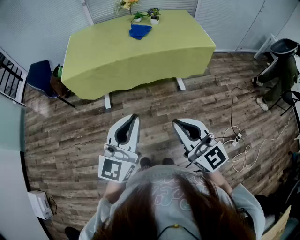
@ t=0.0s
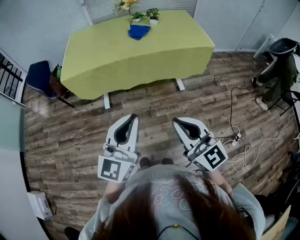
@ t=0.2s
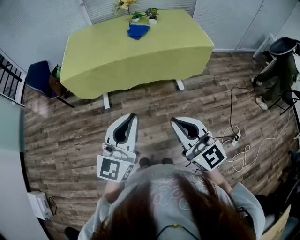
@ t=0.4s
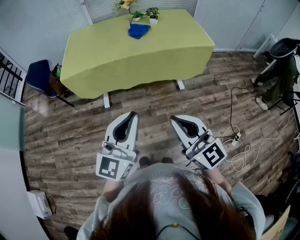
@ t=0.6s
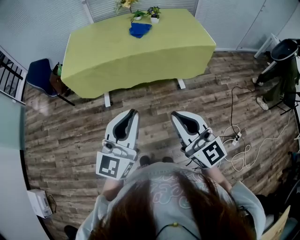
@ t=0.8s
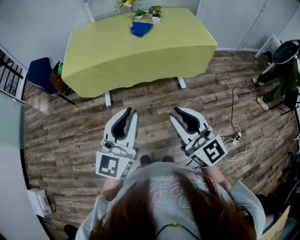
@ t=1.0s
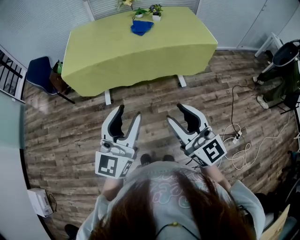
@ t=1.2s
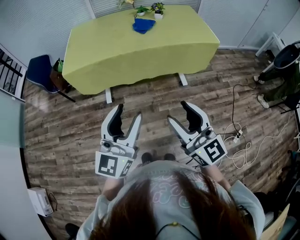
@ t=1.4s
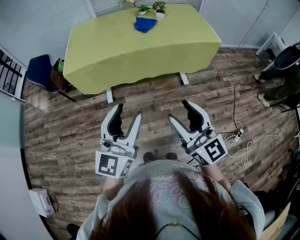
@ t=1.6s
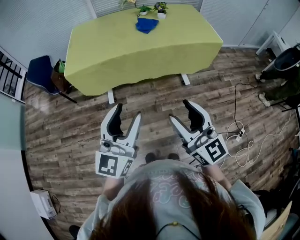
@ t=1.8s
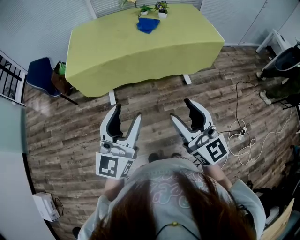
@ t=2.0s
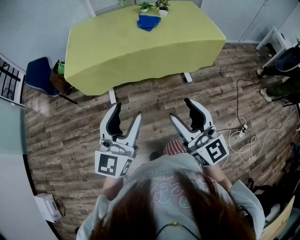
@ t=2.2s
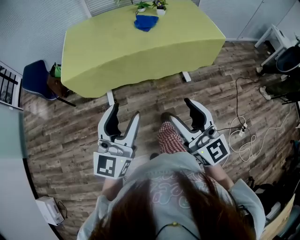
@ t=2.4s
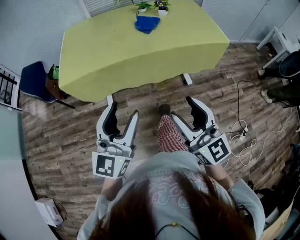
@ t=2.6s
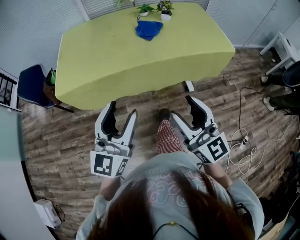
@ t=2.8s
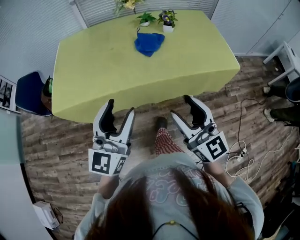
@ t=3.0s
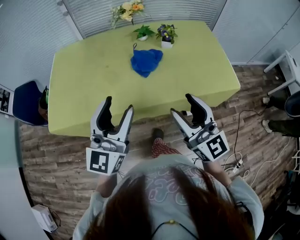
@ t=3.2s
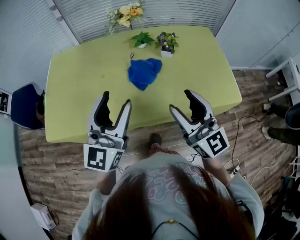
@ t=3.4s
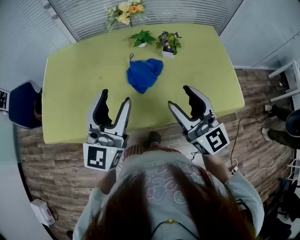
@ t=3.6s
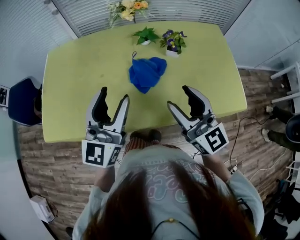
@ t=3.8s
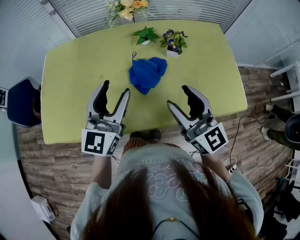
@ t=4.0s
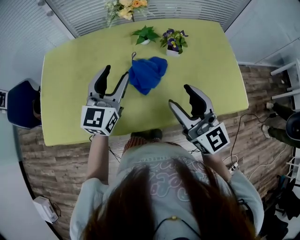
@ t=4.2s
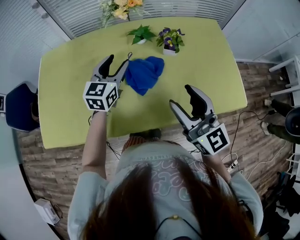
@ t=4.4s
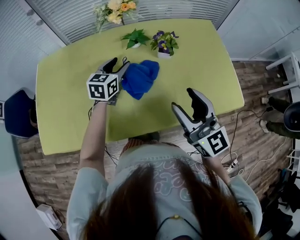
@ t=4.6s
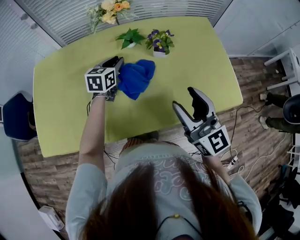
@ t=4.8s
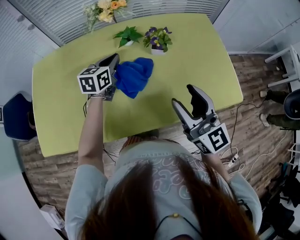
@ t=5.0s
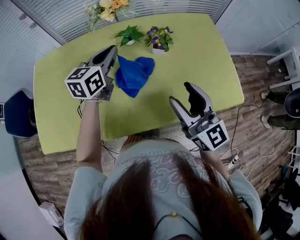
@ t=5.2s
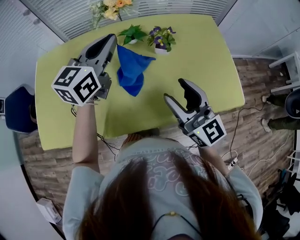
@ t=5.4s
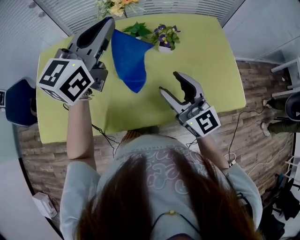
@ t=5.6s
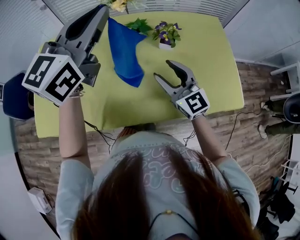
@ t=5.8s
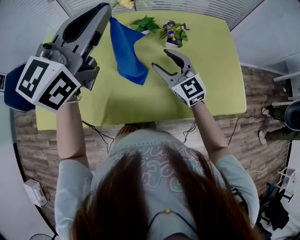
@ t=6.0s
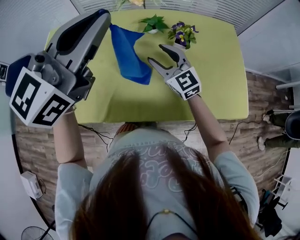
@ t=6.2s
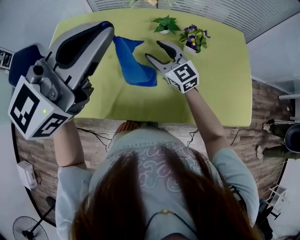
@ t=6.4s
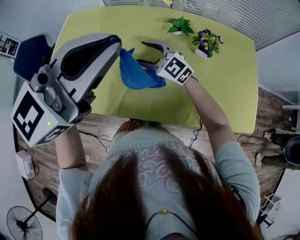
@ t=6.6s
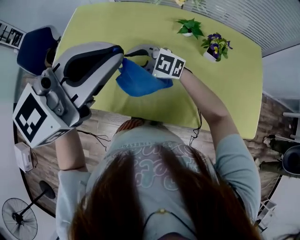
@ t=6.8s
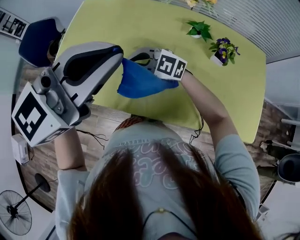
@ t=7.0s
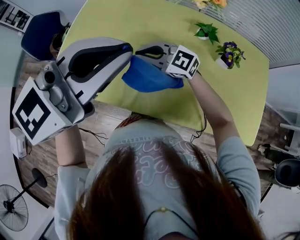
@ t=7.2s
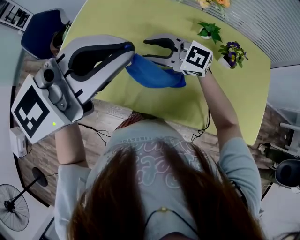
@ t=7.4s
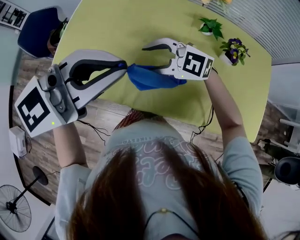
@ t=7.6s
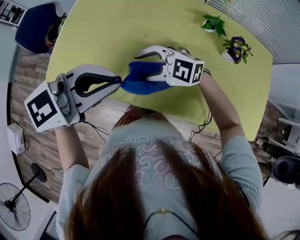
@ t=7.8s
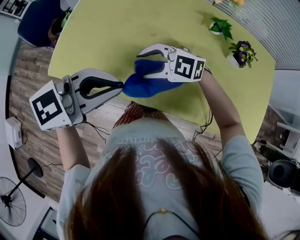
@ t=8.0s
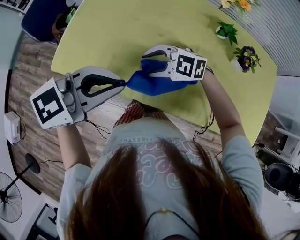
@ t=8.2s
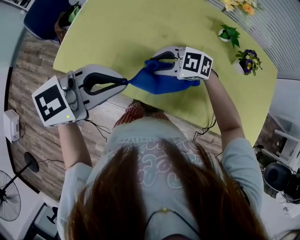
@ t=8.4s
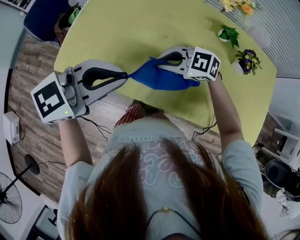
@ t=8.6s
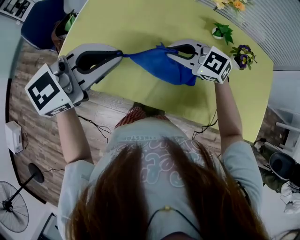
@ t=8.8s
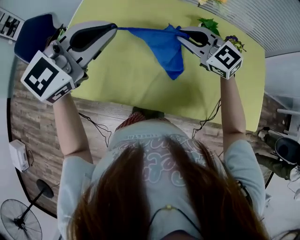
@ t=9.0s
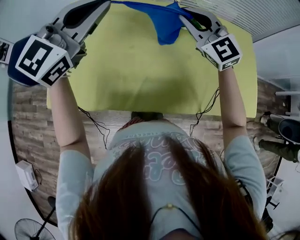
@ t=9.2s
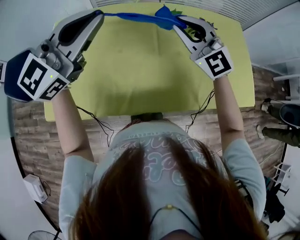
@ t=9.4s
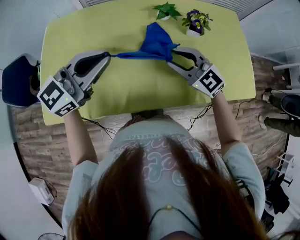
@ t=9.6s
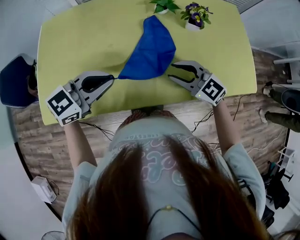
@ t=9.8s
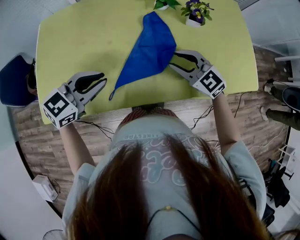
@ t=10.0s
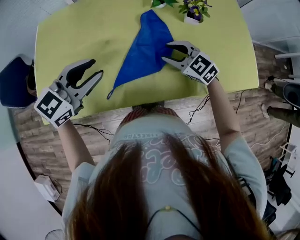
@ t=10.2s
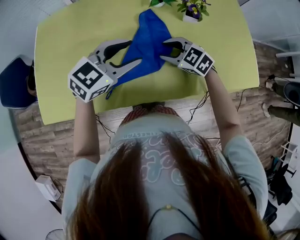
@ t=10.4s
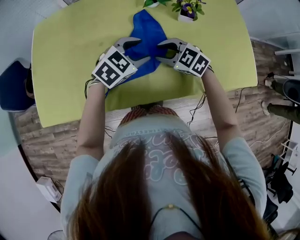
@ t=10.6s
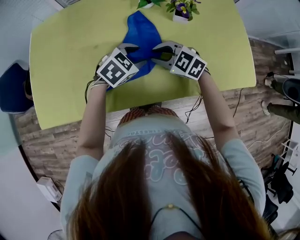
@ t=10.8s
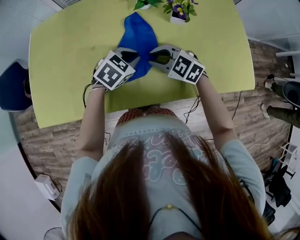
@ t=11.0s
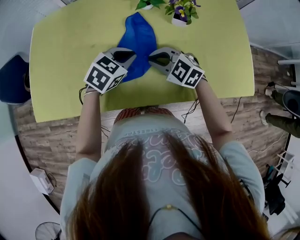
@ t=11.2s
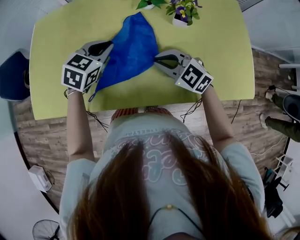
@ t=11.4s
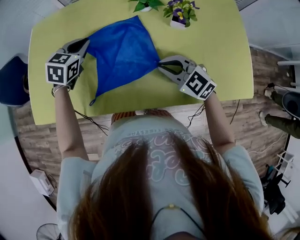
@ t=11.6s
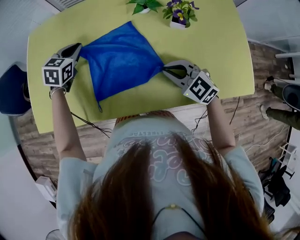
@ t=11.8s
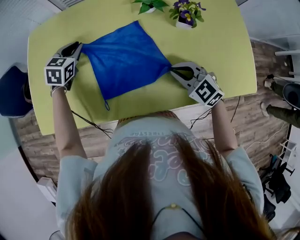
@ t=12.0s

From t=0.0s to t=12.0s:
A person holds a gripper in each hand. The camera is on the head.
From t=0.0s to t=1.6s: The left gripper is displaced to the left by some 5 cm, and opens up. The right gripper opens up.
From t=1.6s to t=3.0s: The grippers both shift forward by approximately 30 cm.
From t=3.0s to t=4.4s: The left gripper is displaced forward by some 40 cm, and rotates about 20 degrees. The right gripper moves forward, about 30 cm.
From t=4.4s to t=6.0s: The right gripper heads forward and downward, covering some 15 cm, and rotates about 20 degrees. Meanwhile the left gripper shifts some 25 cm upward, and closes.
From t=6.0s to t=7.6s: The left gripper shifts by some 20 cm, while the right gripper changes place by approximately 25 cm, changes its angle by approximately 70 degrees, and closes, then opens again.
From t=7.6s to t=9.0s: The right gripper ends up approximately 15 cm from where it was, turns by roughly 30 degrees, and closes up; the left gripper reaches approximately 10 cm downward, then returns.
From t=9.0s to t=10.4s: The left gripper goes up and down, about 25 cm each way, reversing 2 times, changes its angle by approximately 30 degrees, and opens. Meanwhile the right gripper shifts roughly 15 cm downward, changes its angle by approximately 30 degrees, and opens.
From t=10.4s to t=12.0s: The right gripper changes place by about 5 cm, and closes; the left gripper ends up roughly 25 cm from where it was, turns by about 40 degrees, and closes up.

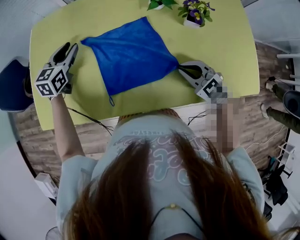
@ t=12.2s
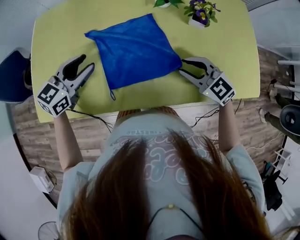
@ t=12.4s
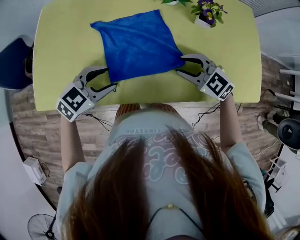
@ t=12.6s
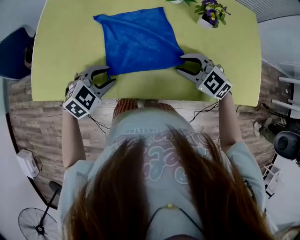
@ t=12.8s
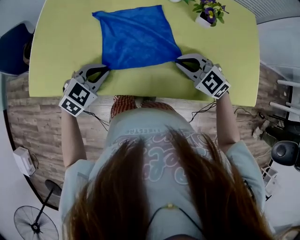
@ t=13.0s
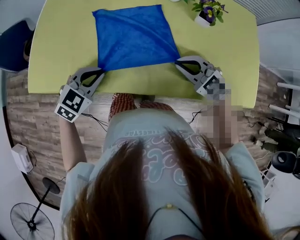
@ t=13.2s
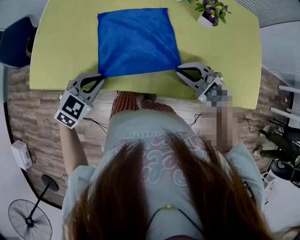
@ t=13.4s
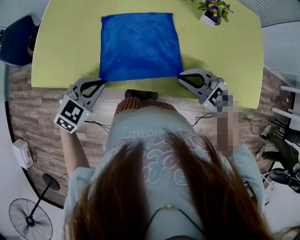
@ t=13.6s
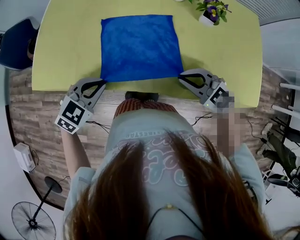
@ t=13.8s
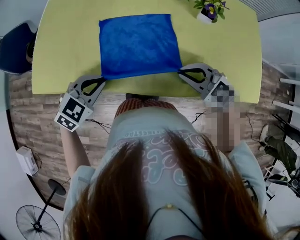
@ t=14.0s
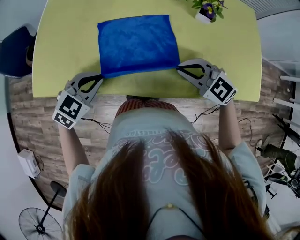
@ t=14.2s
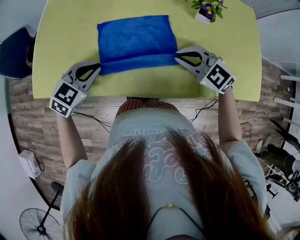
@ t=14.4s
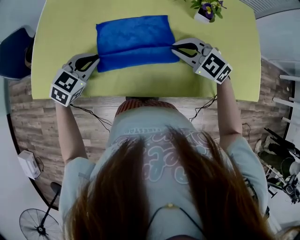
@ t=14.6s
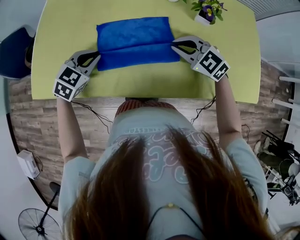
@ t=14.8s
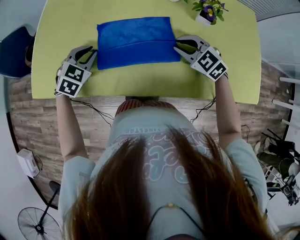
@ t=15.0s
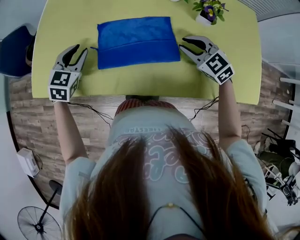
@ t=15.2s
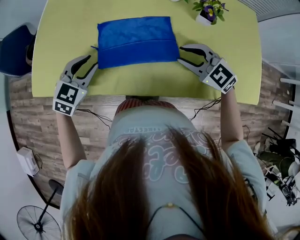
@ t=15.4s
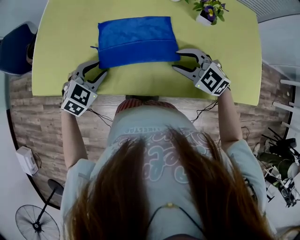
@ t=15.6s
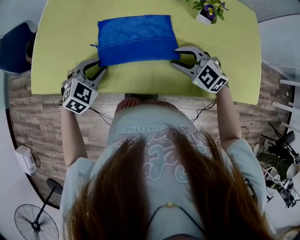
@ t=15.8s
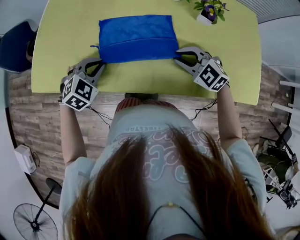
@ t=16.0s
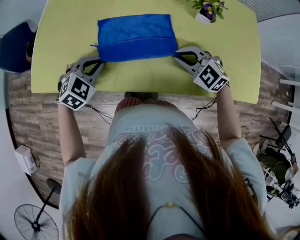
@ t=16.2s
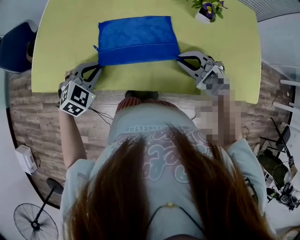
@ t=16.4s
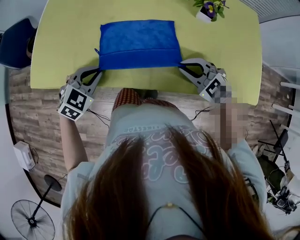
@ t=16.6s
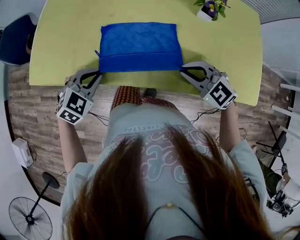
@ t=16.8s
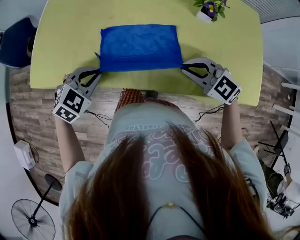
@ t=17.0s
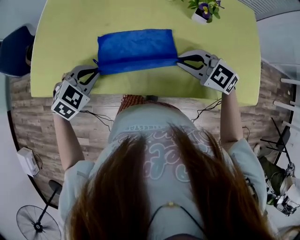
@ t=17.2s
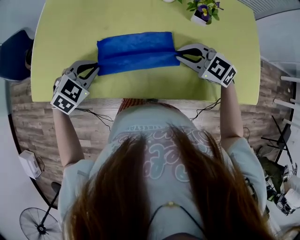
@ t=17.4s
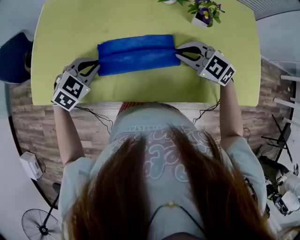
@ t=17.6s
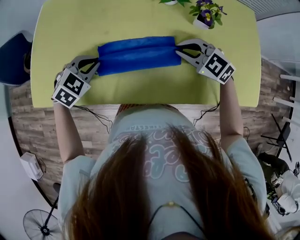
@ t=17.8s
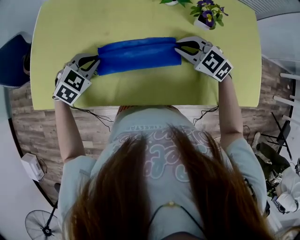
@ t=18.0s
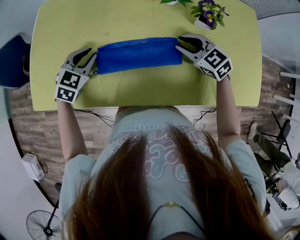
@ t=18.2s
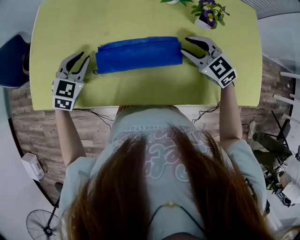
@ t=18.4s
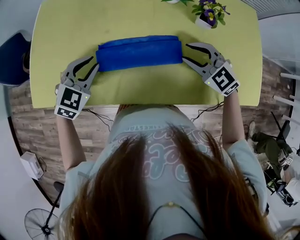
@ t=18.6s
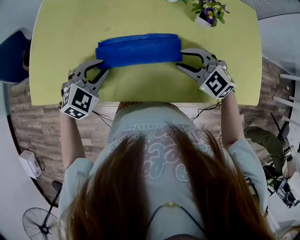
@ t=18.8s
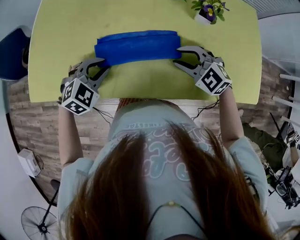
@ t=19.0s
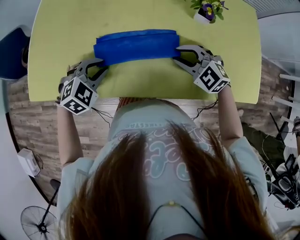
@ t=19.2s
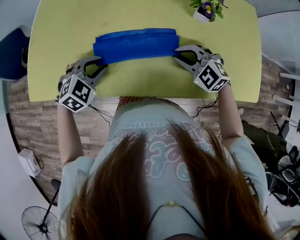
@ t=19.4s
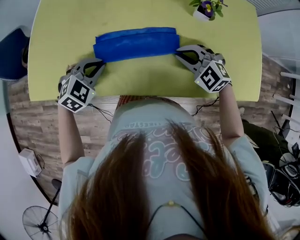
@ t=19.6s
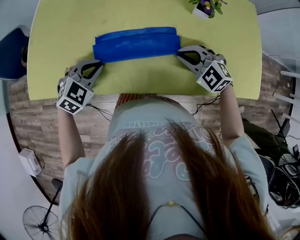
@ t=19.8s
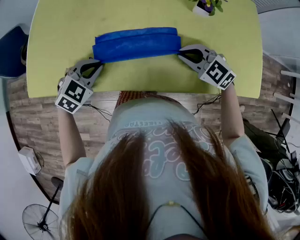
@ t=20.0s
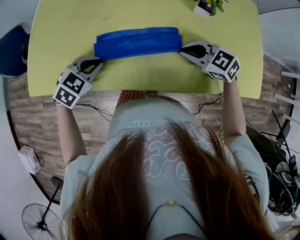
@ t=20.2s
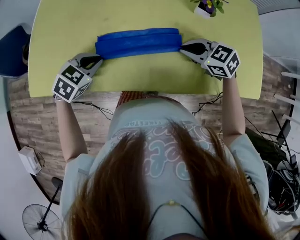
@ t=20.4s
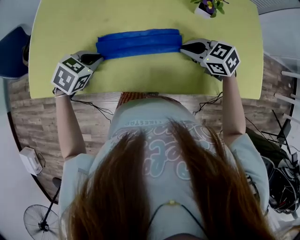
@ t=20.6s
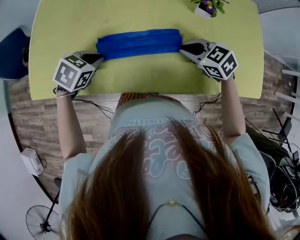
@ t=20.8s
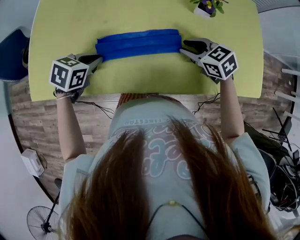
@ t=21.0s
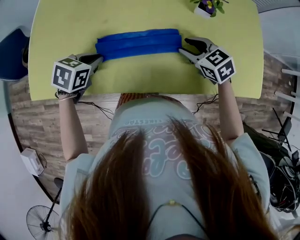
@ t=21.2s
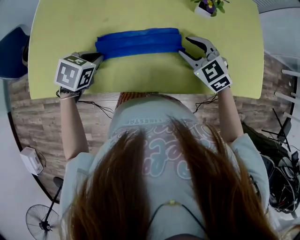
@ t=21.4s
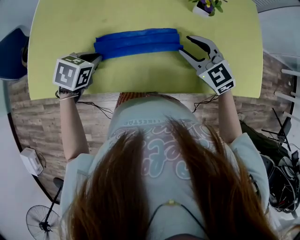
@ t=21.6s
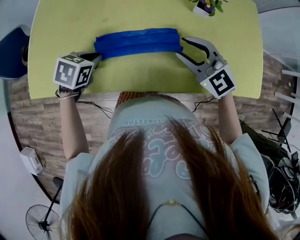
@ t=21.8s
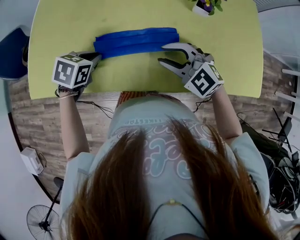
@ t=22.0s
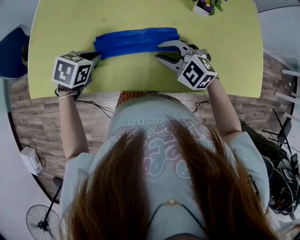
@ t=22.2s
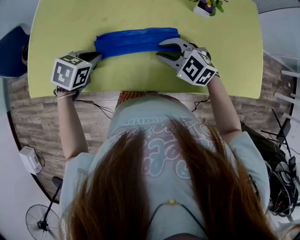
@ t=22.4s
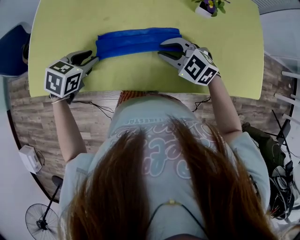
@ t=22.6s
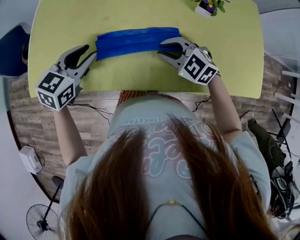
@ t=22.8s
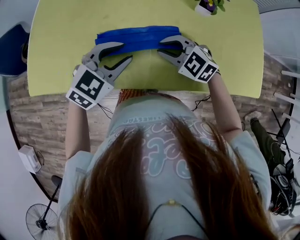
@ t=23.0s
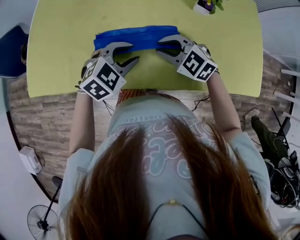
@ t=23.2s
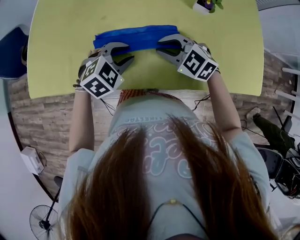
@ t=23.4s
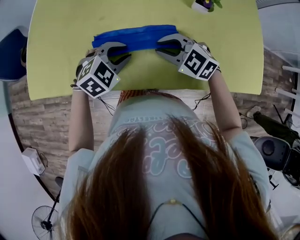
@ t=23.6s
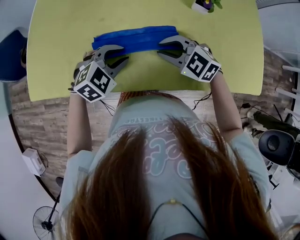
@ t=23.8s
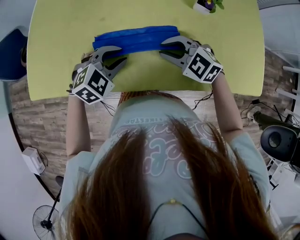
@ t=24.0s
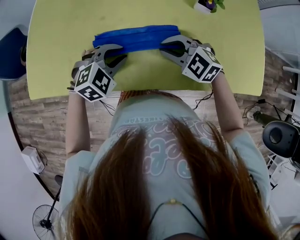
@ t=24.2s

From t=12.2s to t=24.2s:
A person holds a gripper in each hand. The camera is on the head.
From t=12.2s to t=13.8s: The left gripper changes place by roughly 30 cm, changes its angle by approximately 30 degrees, and closes up. Meanwhile the right gripper moves some 10 cm, changes its angle by roughly 20 degrees, and opens, then closes once more.
From t=13.8s to t=15.2s: The grippers both shift forward by some 15 cm. The left gripper swivels approximately 20 degrees.
From t=15.2s to t=16.6s: Both grippers travel together backward, some 10 cm. The left gripper changes its angle by roughly 20 degrees.
From t=16.6s to t=18.2s: The grippers both shift forward by approximately 15 cm. The right gripper swivels about 20 degrees.
From t=18.2s to t=19.8s: The grippers both shift backward by approximately 10 cm. The right gripper changes its angle by roughly 30 degrees, and closes its fingers.
From t=19.8s to t=21.2s: The left gripper rotates approximately 40 degrees; the right gripper turns by some 40 degrees, and opens.
From t=21.2s to t=22.6s: The right gripper heads to the left, covering about 10 cm, and changes its angle by about 30 degrees, while the left gripper opens up.
From t=22.6s to t=24.2s: The left gripper moves to the right, roughly 10 cm, and rotates around the line of its fingers by some 40 degrees, clockwise from behind.
